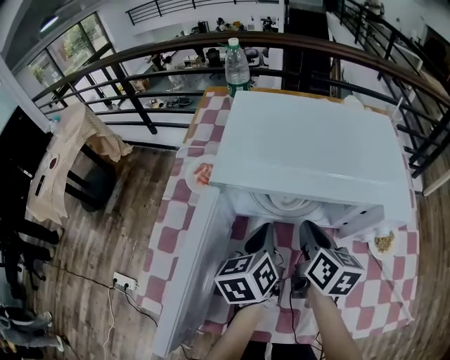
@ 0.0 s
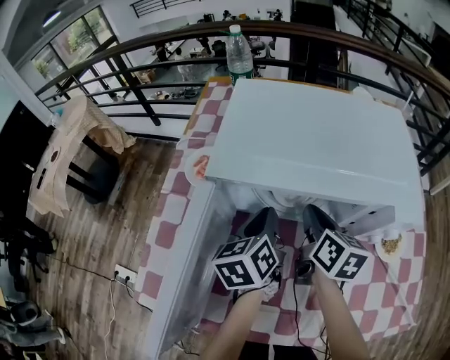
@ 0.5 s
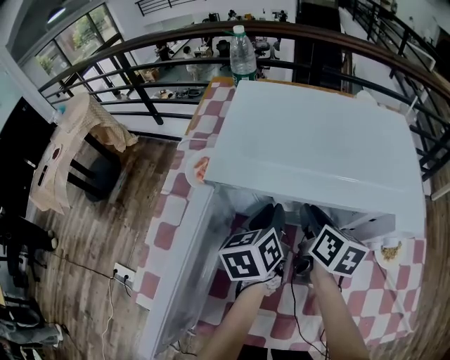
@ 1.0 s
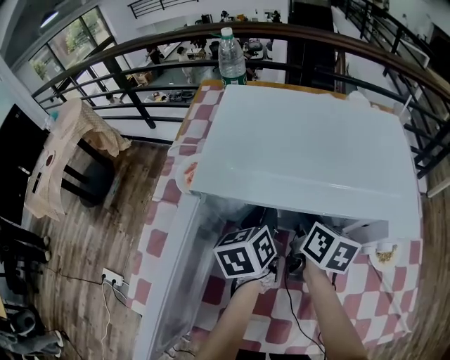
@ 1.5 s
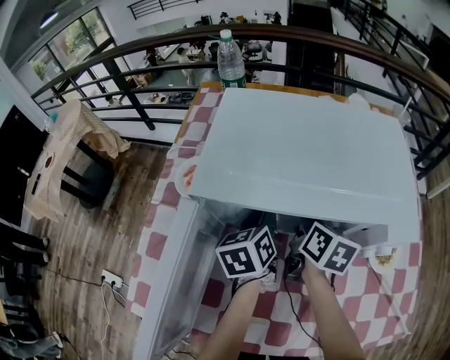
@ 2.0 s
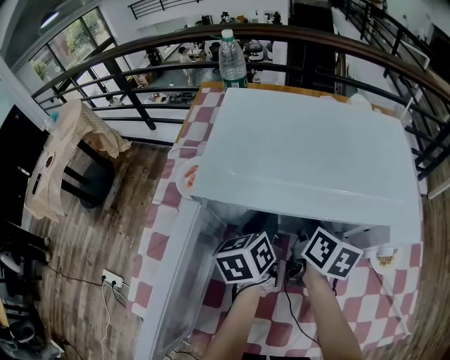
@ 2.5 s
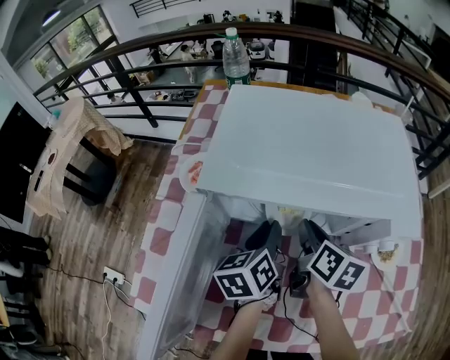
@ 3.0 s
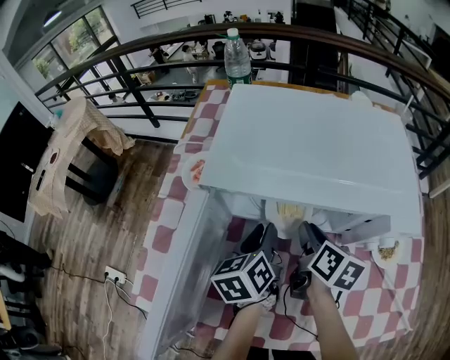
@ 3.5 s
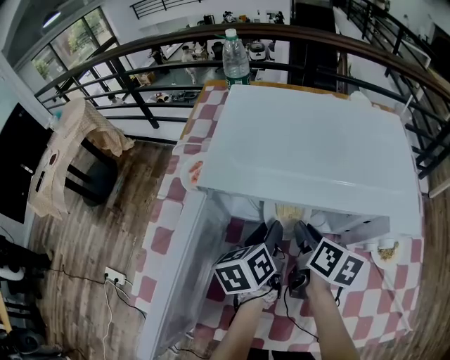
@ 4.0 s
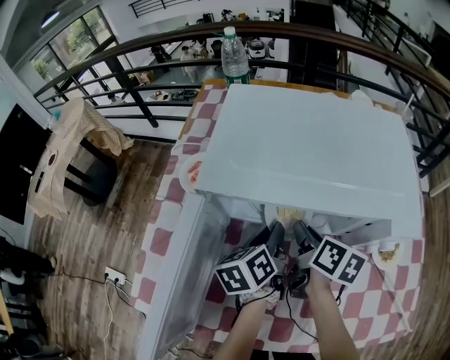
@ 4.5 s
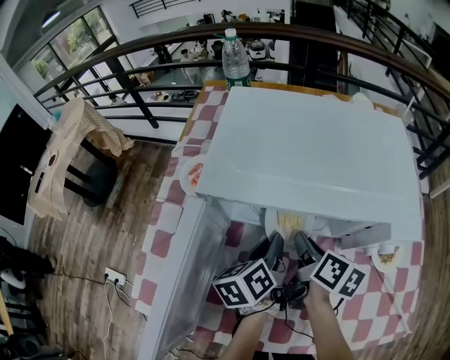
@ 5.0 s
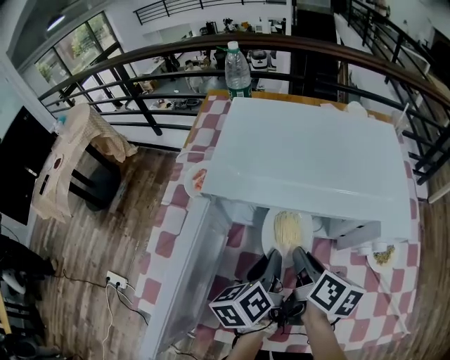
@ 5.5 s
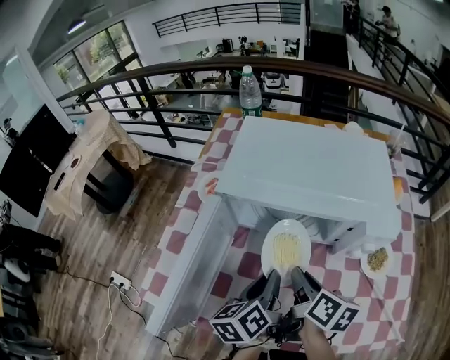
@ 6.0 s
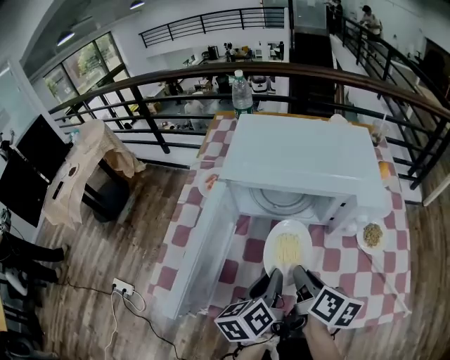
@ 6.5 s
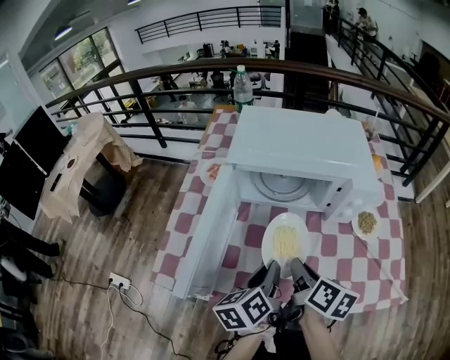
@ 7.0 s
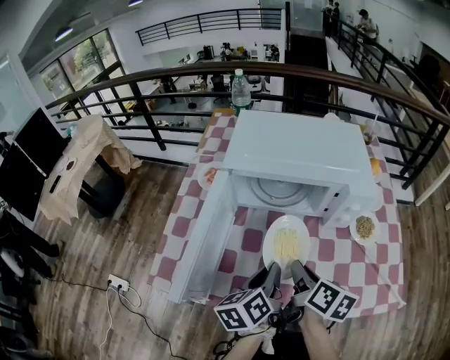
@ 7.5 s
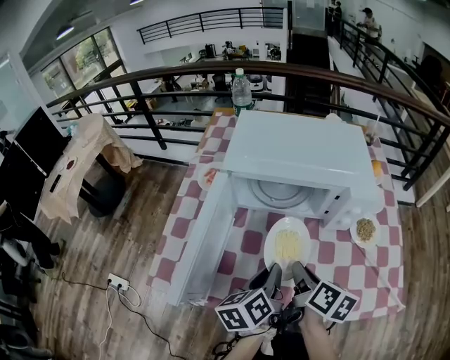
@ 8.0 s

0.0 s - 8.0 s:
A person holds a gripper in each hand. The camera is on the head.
0.0 s - 2.0 s: The grippers both shift forward by about 10 cm. The right gripper opens up. Meanwhile the left gripper opens its fingers.
2.0 s - 4.0 s: Both grippers move backward, some 5 cm.
4.0 s - 6.0 s: Both grippers travel together backward and upward, roughly 15 cm.
6.0 s - 8.0 s: Both grippers move backward, some 10 cm.

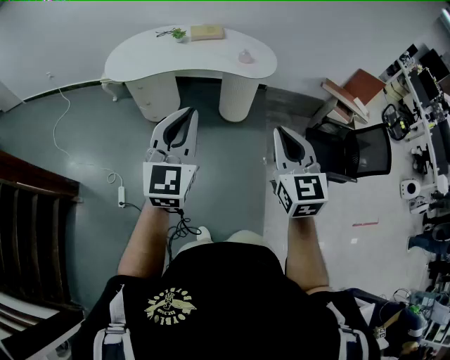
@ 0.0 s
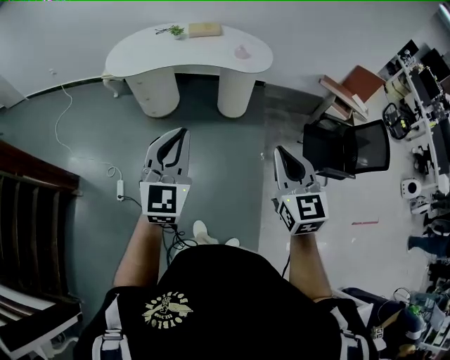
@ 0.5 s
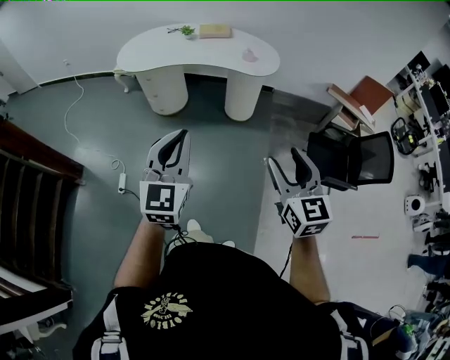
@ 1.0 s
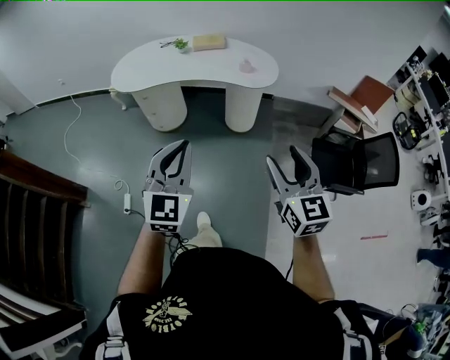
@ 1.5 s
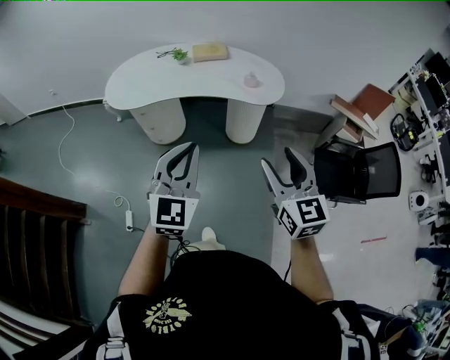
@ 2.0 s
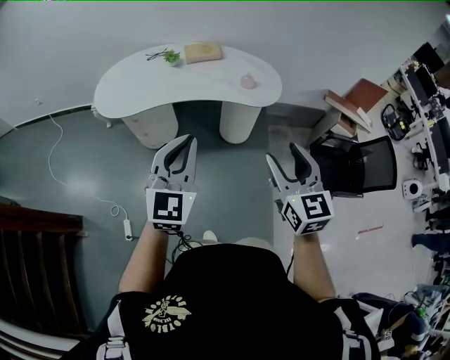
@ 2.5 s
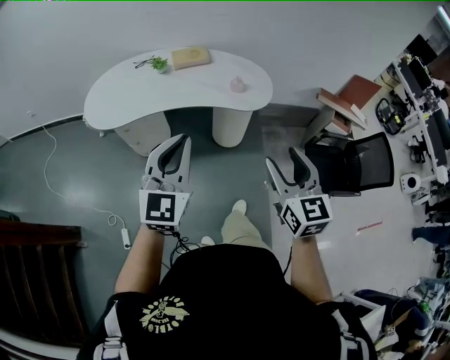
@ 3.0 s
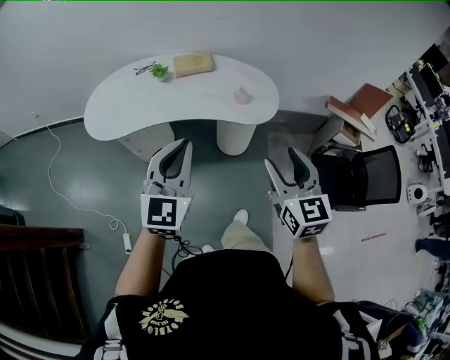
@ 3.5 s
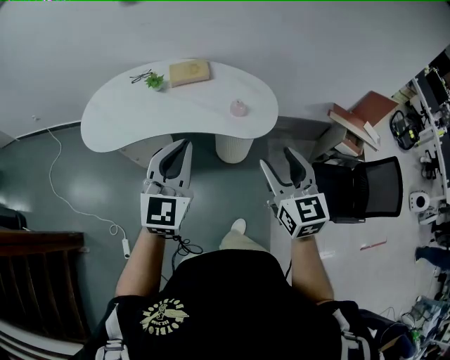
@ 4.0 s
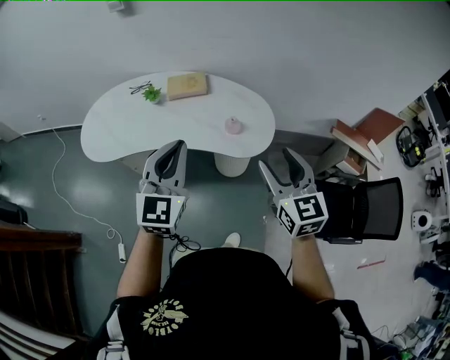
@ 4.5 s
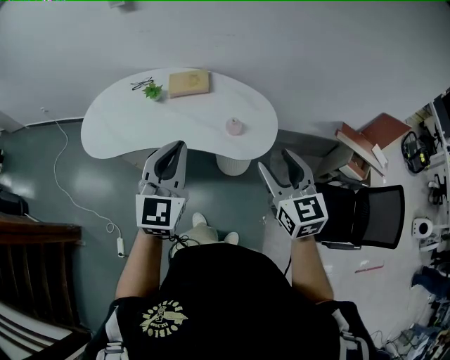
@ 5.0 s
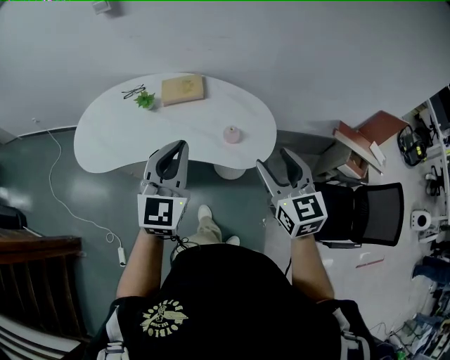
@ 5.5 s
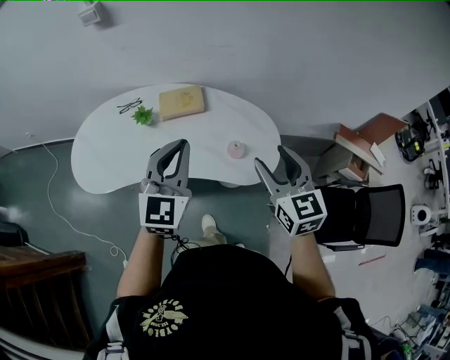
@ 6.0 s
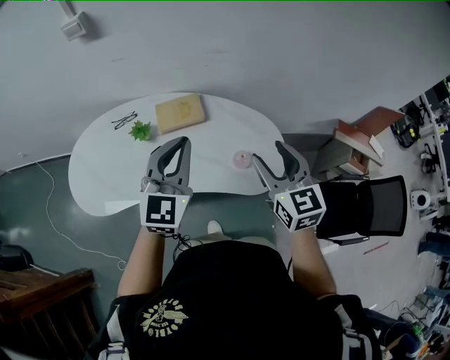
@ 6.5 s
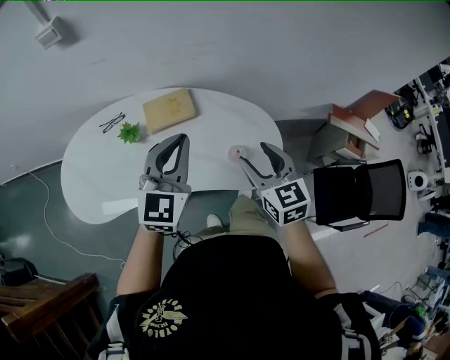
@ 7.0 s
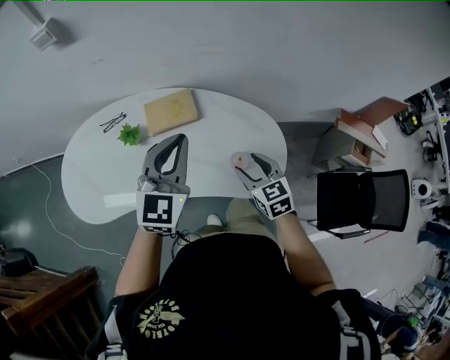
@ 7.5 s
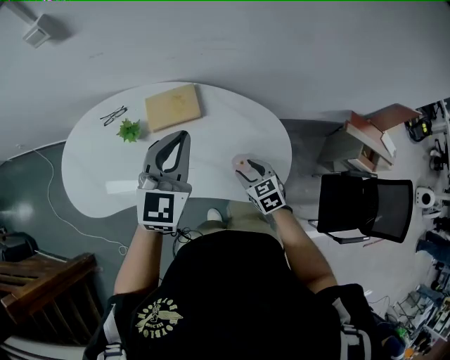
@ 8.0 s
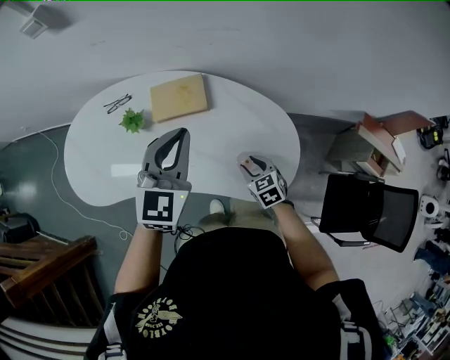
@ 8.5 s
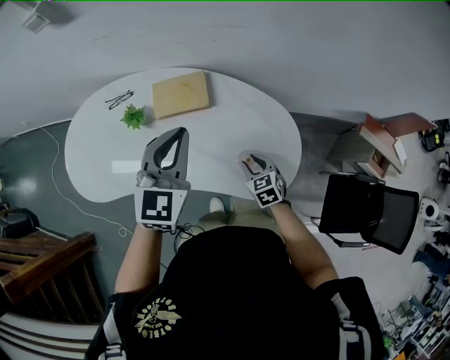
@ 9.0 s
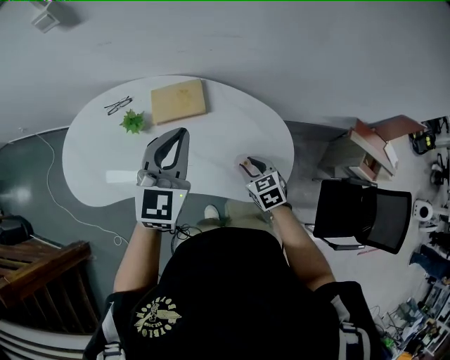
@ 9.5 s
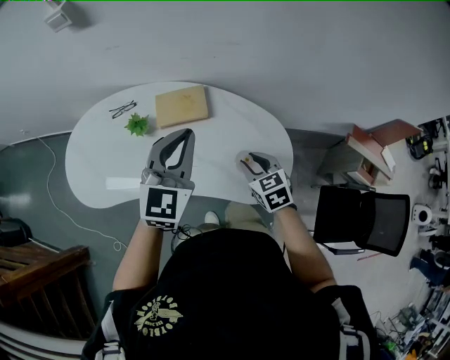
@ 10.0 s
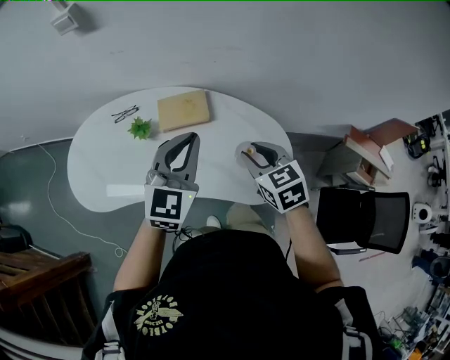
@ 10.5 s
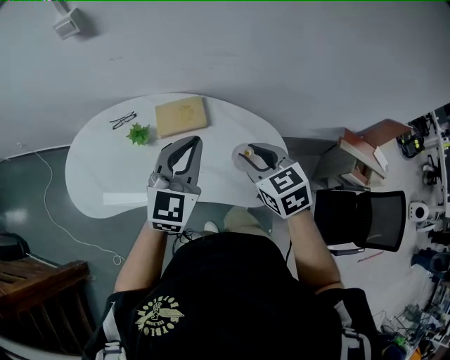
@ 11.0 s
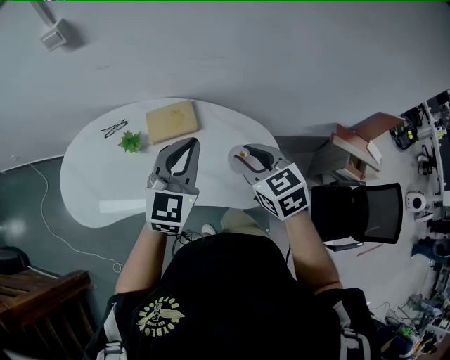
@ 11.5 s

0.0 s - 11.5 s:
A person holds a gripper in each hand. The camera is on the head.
0.0 s - 2.0 s: Both grippers travel together forward, approximately 10 cm. The right gripper opens.
2.0 s - 4.0 s: Both grippers travel together forward, roughly 25 cm.
4.0 s - 6.0 s: Both grippers travel together forward, about 25 cm.
6.0 s - 7.5 s: The left gripper moves forward, approximately 15 cm, while the right gripper is displaced downward and forward by approximately 20 cm.
7.5 s - 9.5 s: The right gripper heads downward, covering about 10 cm, and closes.
9.5 s - 11.5 s: The right gripper moves upward, approximately 25 cm.

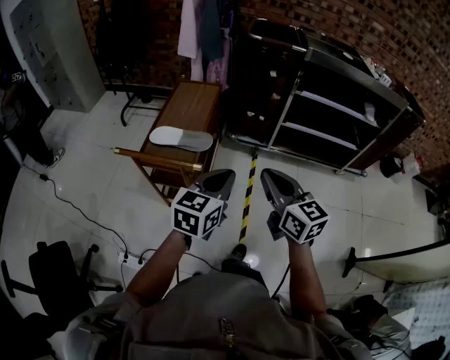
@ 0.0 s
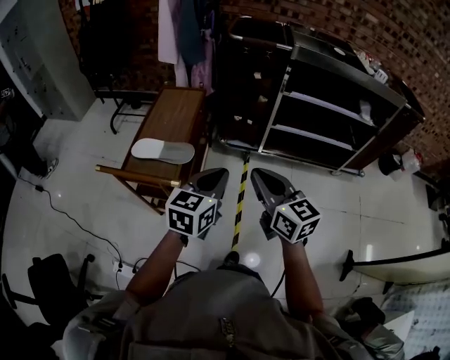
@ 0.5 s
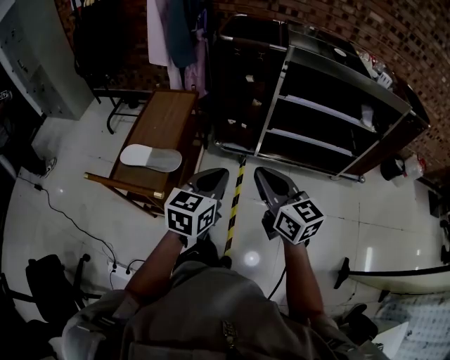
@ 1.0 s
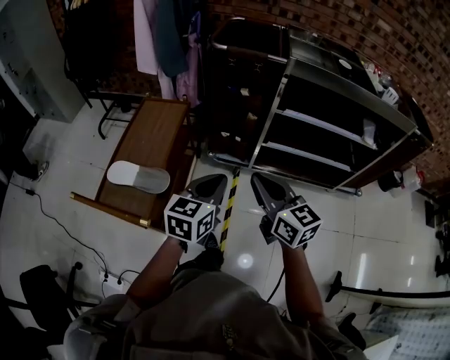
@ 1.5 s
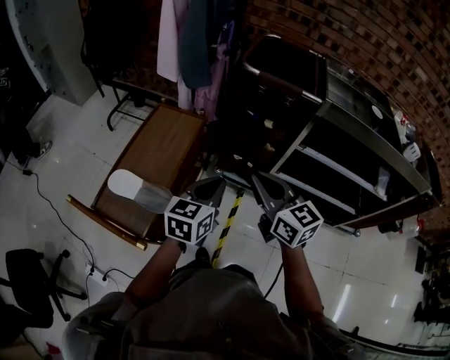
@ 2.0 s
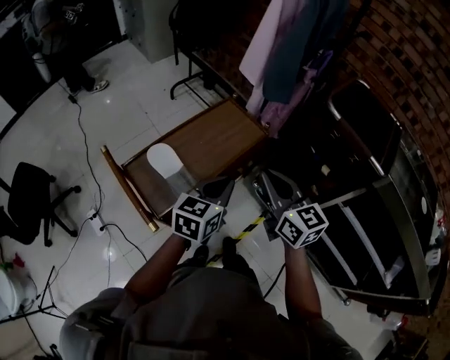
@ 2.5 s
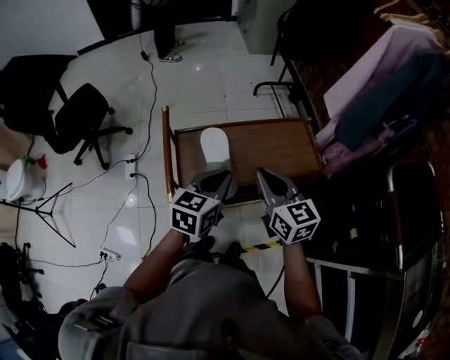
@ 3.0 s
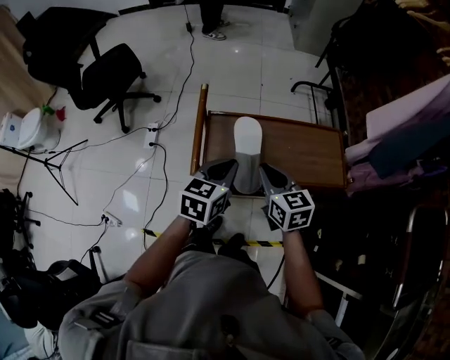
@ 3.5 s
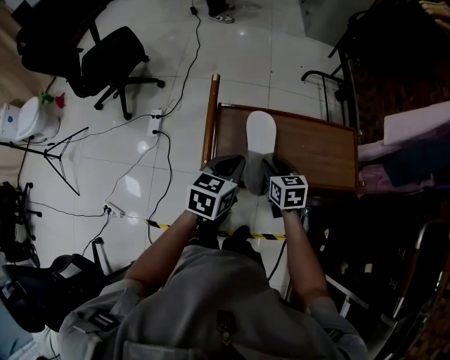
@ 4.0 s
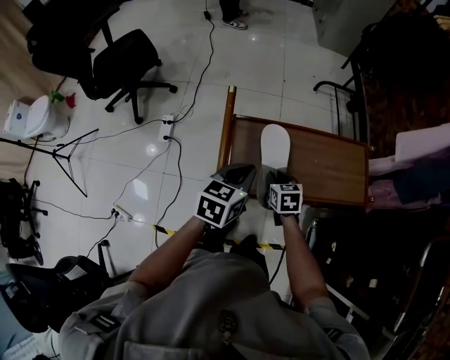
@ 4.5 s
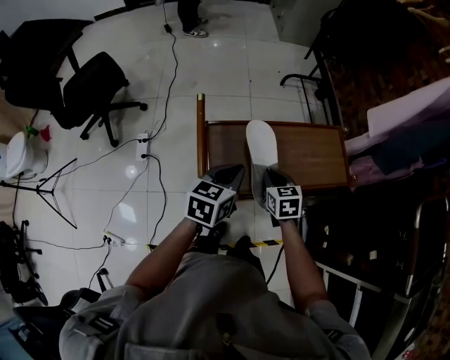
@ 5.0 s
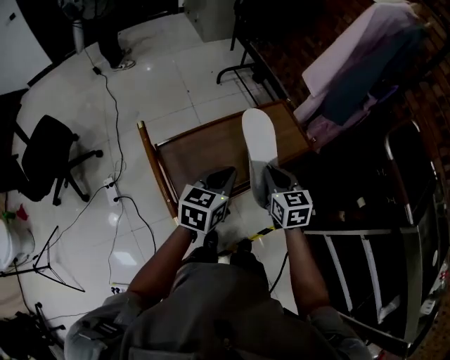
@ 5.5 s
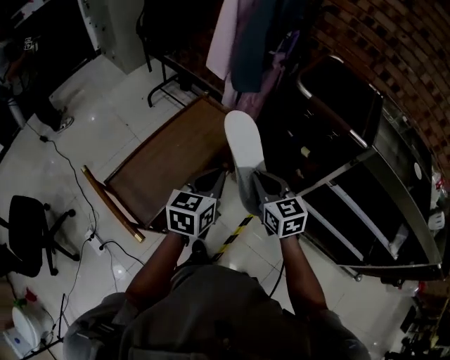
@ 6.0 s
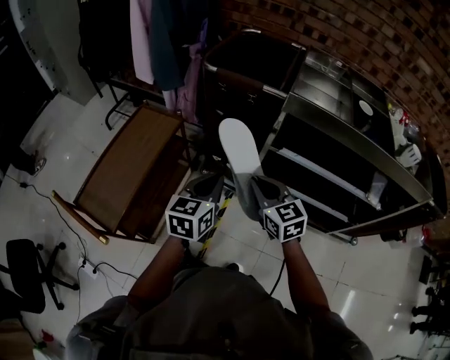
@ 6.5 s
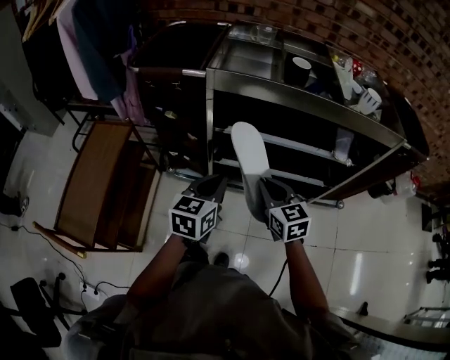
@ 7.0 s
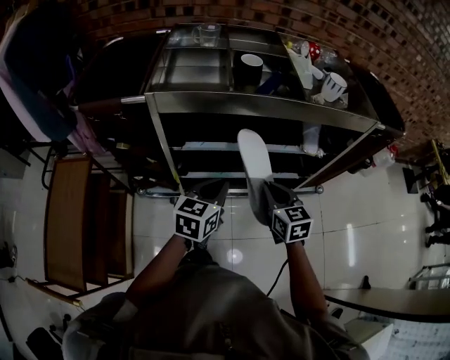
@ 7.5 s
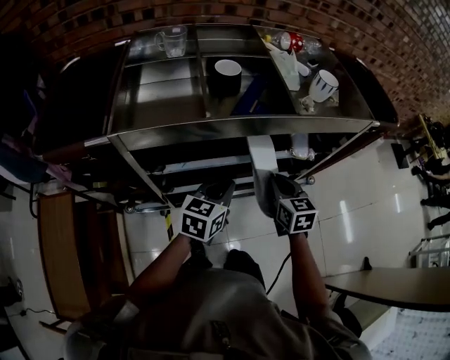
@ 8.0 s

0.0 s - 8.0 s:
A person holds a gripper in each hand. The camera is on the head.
0.0 s - 2.0 s: The two grippers go roughly 35 cm forward.
2.0 s - 4.0 s: The left gripper moves some 35 cm, and rotates some 70 degrees, while the right gripper shifts by some 40 cm, angles its fingers downward, by about 30 degrees, and opens.
4.0 s - 6.0 s: The left gripper moves about 30 cm, and changes its angle by roughly 50 degrees. The right gripper shifts by about 35 cm, changes its angle by roughly 50 degrees, and closes its fingers.
6.0 s - 8.0 s: Both grippers are carried roughly 60 cm. The left gripper swivels roughly 60 degrees. Meanwhile the right gripper changes its angle by some 60 degrees.
